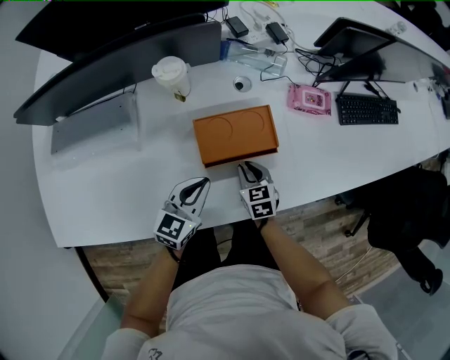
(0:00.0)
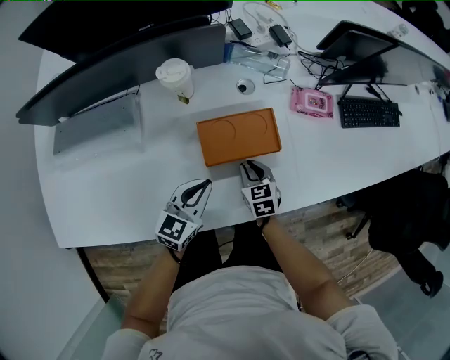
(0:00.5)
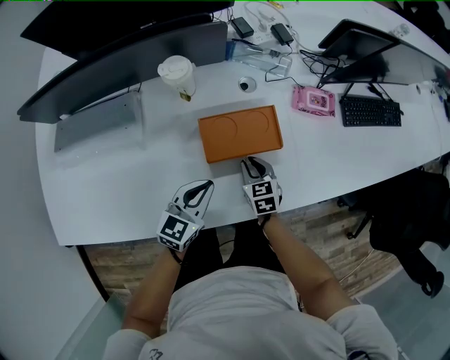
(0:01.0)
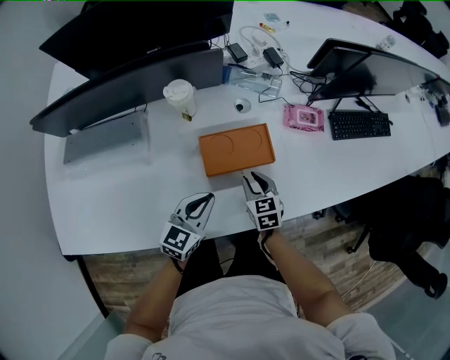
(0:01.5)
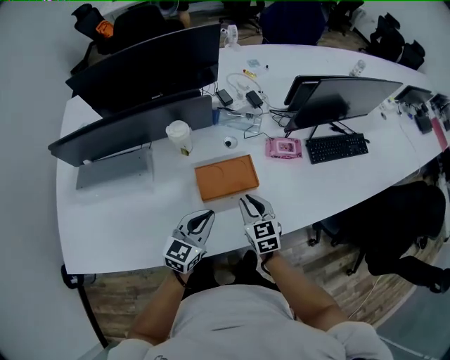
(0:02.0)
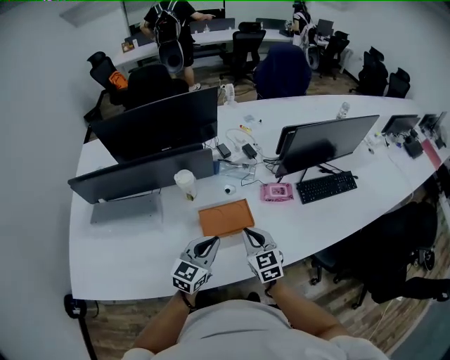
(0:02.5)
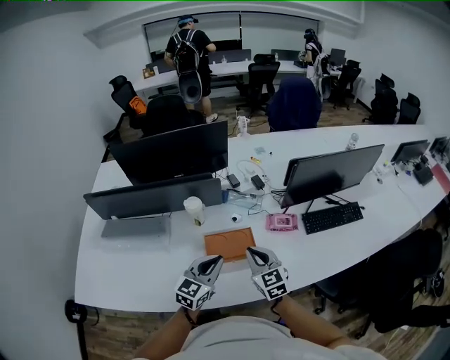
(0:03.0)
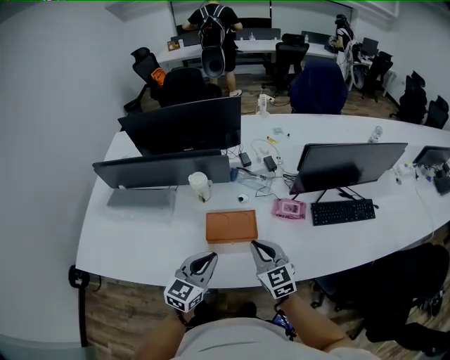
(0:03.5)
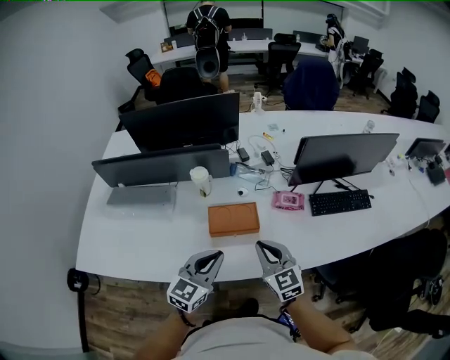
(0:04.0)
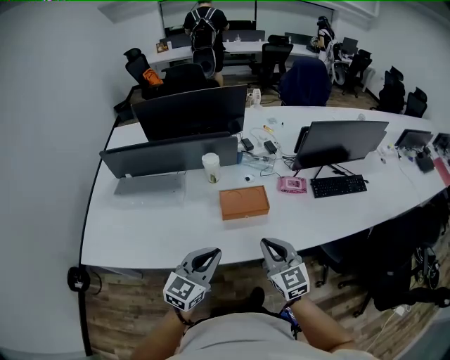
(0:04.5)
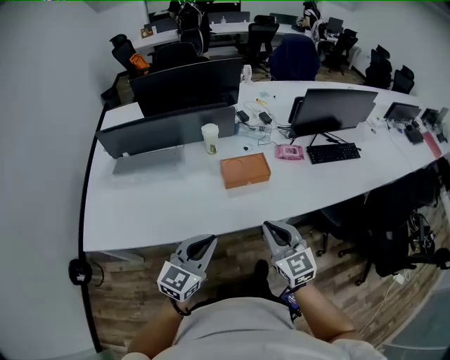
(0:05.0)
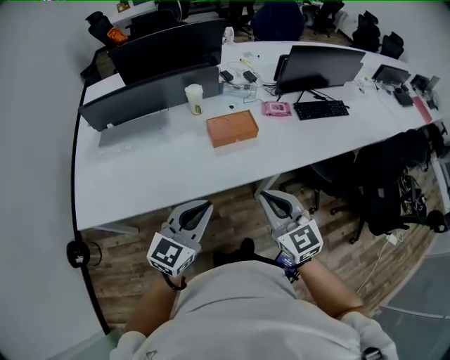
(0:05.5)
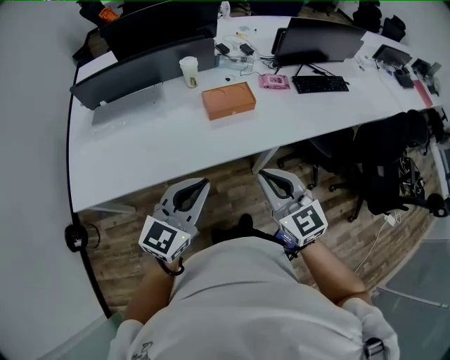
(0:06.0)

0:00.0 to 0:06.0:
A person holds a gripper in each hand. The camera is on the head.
0:00.0 to 0:02.0: The left gripper moves upward, some 10 cm; the right gripper shifts about 20 cm upward.
0:02.0 to 0:04.0: Both grippers move upward, backward and to the right, approximately 20 cm. The right gripper rotates roughly 20 degrees.
0:04.0 to 0:06.0: The left gripper is displaced backward and to the left by about 30 cm. The right gripper goes some 30 cm backward.

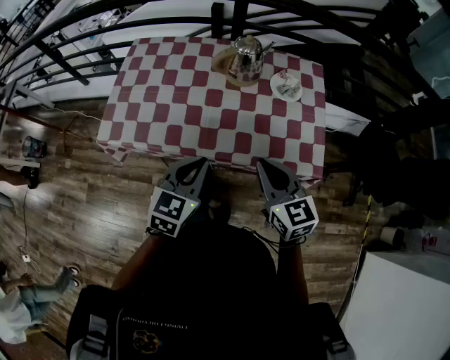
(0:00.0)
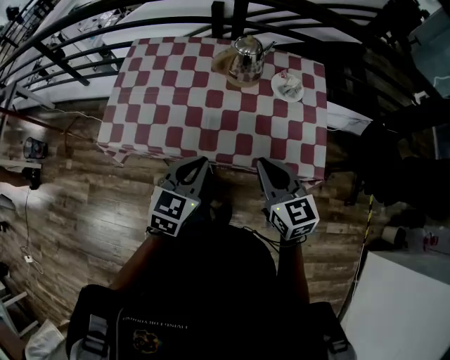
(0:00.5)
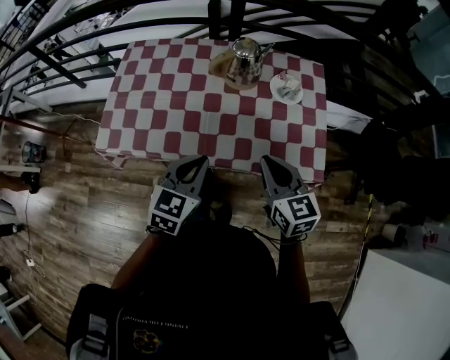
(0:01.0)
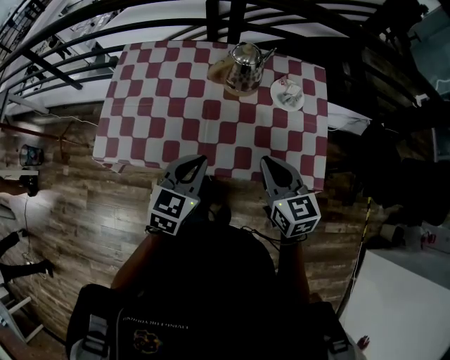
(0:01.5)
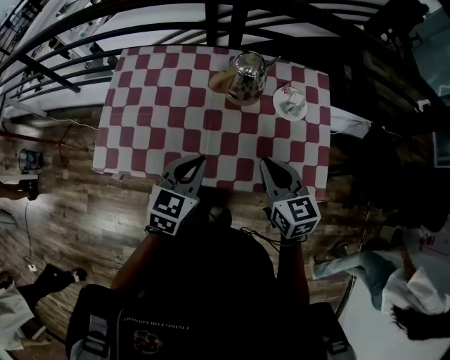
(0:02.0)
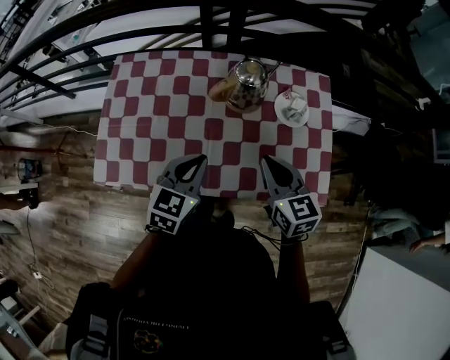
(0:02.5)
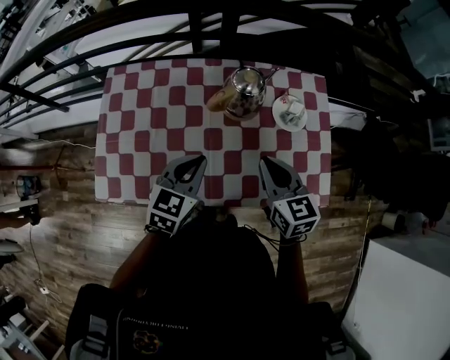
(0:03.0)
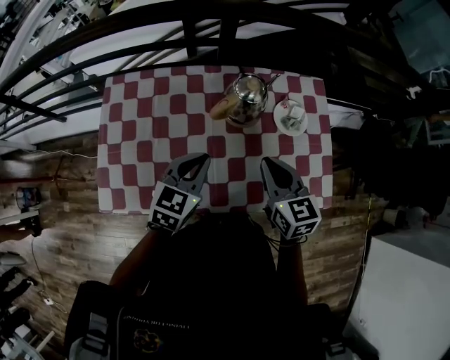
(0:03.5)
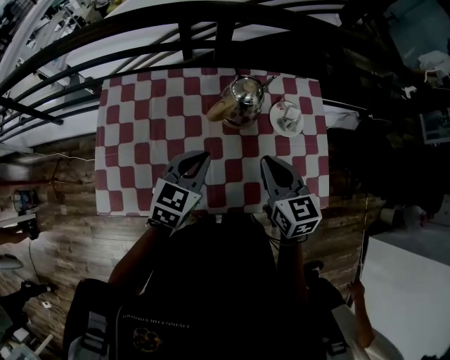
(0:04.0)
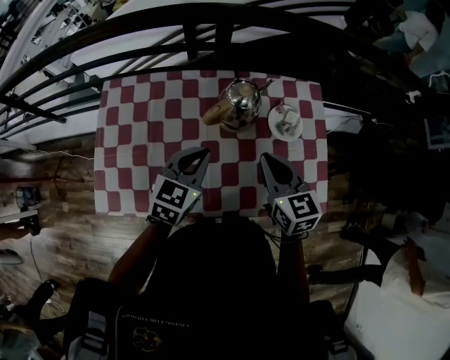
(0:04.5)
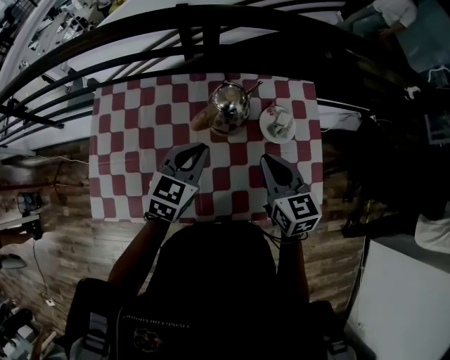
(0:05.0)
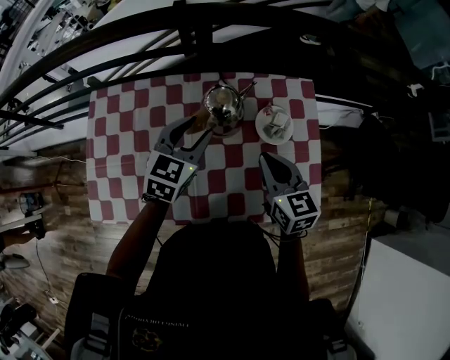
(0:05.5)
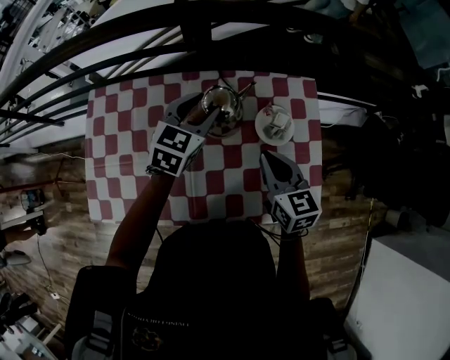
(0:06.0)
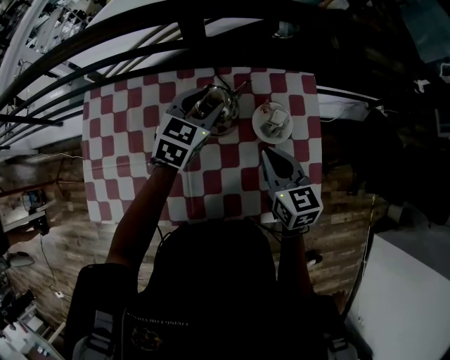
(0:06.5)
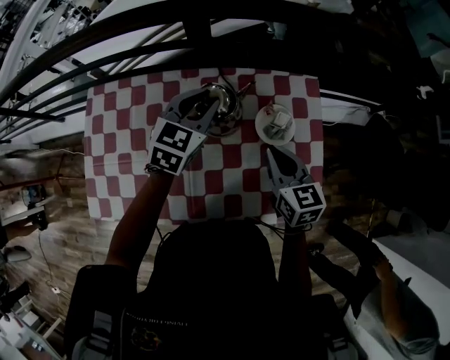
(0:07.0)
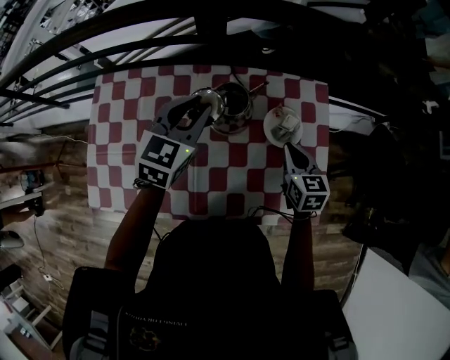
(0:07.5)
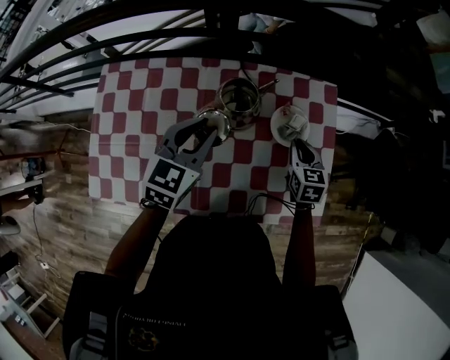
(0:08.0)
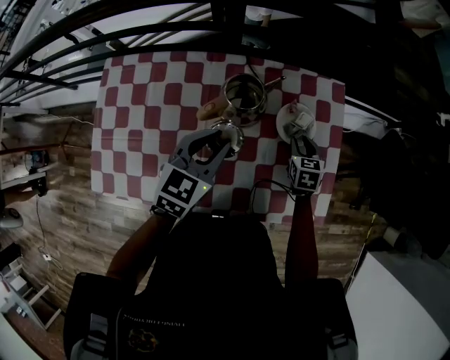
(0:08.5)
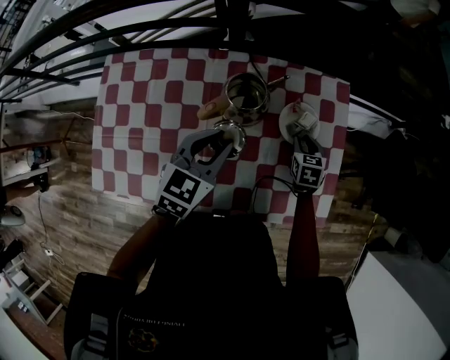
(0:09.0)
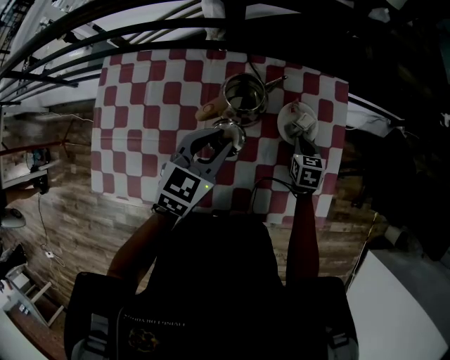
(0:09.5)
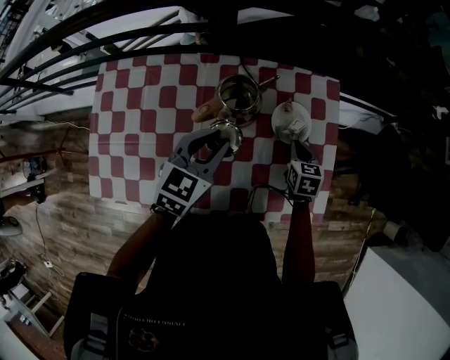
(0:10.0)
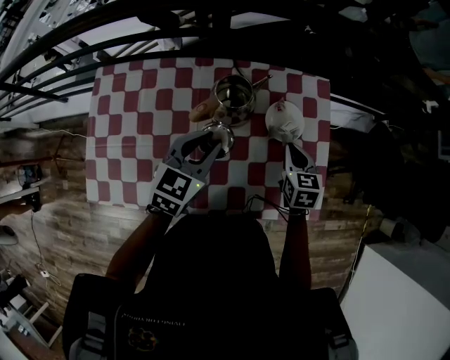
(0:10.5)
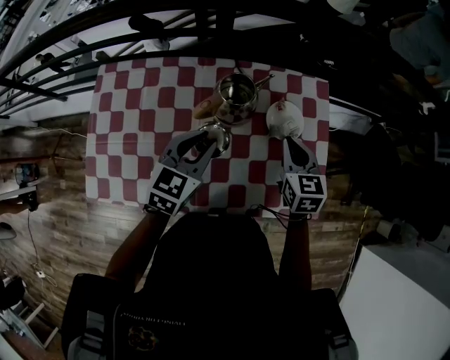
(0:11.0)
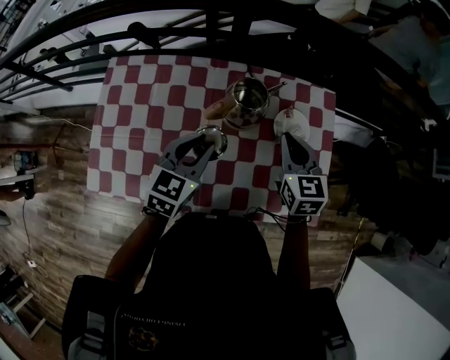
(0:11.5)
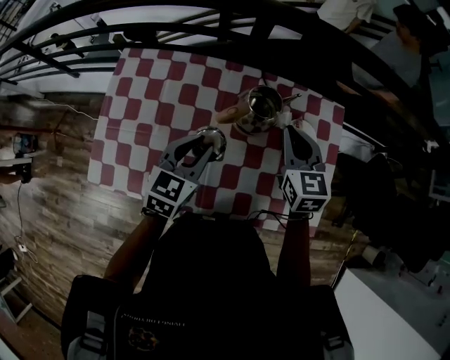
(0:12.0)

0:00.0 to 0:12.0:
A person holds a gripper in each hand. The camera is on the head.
0:00.0 to 0:02.0: Both grippers travel together forward, approximately 10 cm.
0:02.0 to 0:04.0: The two grippers go about 10 cm forward.
0:04.0 to 0:06.0: The left gripper moves forward and to the right, about 20 cm, and opens its fingers. Meanwhile the right gripper shifts approximately 10 cm forward and to the right.
0:06.0 to 0:08.0: The right gripper goes approximately 15 cm downward, to the right and forward. Meanwhile the left gripper moves backward, approximately 10 cm.
0:08.0 to 0:10.0: The right gripper opens, then closes again.
0:10.0 to 0:12.0: The right gripper heads upward and to the left, covering about 25 cm, and swivels some 30 degrees. Meanwhile the left gripper heads to the left, covering roughly 10 cm.

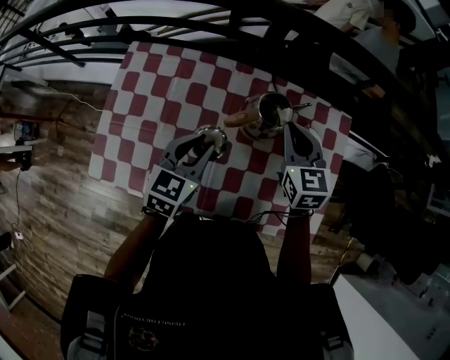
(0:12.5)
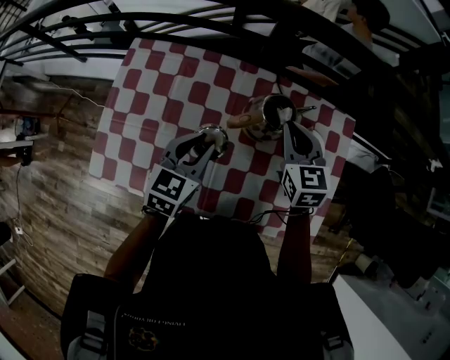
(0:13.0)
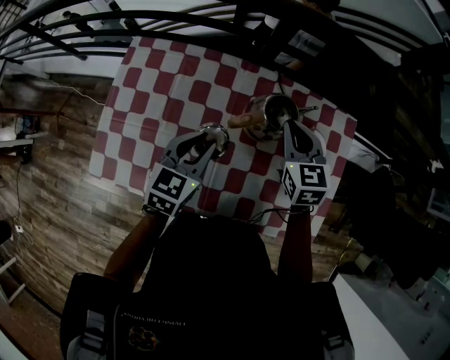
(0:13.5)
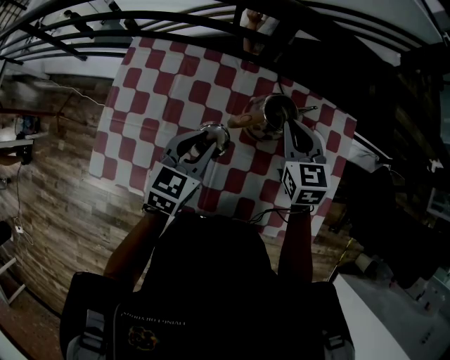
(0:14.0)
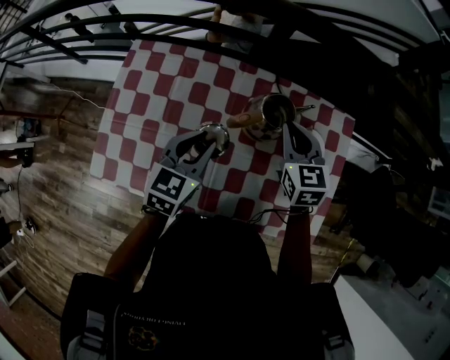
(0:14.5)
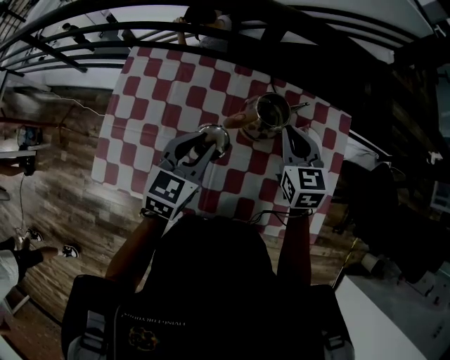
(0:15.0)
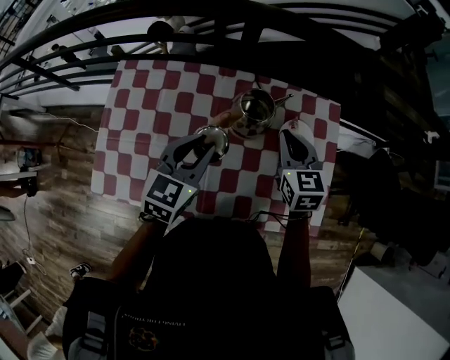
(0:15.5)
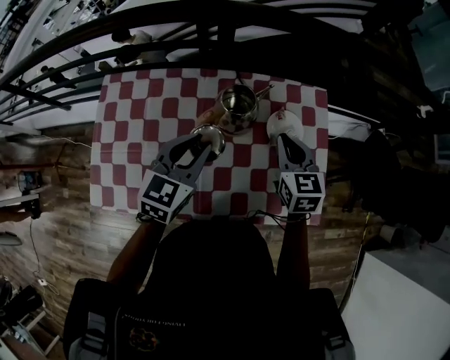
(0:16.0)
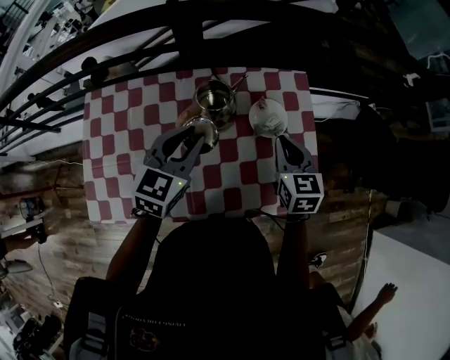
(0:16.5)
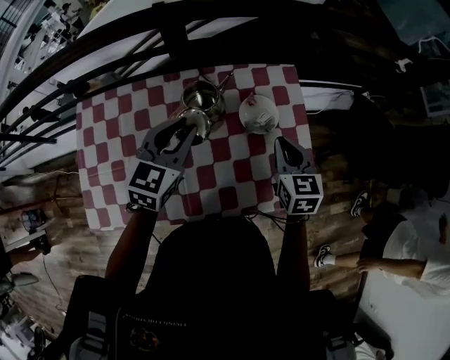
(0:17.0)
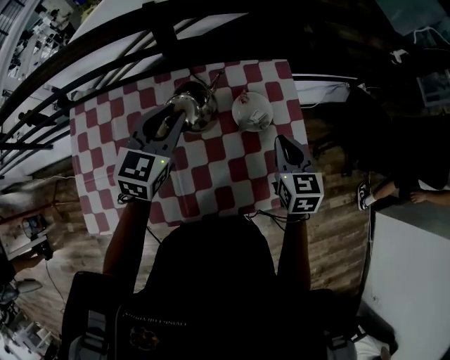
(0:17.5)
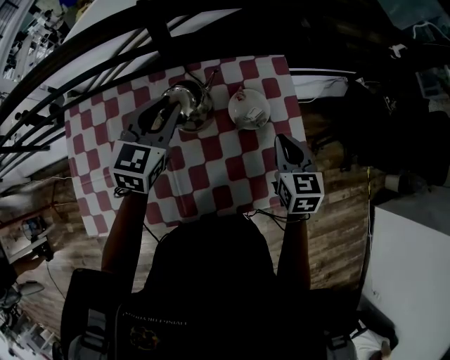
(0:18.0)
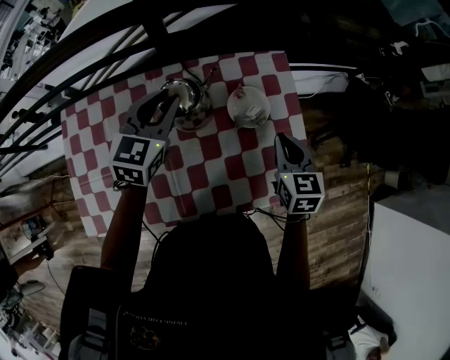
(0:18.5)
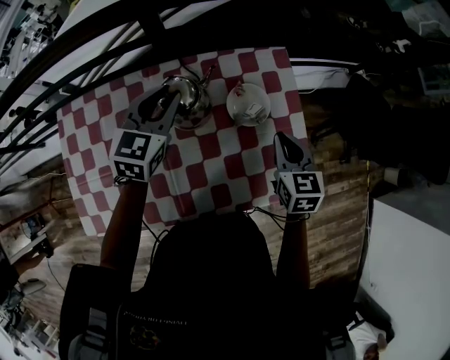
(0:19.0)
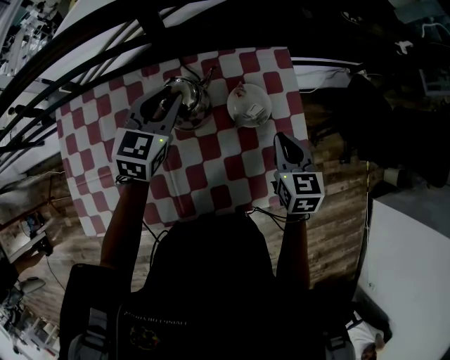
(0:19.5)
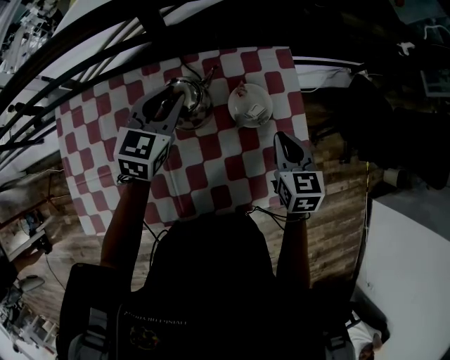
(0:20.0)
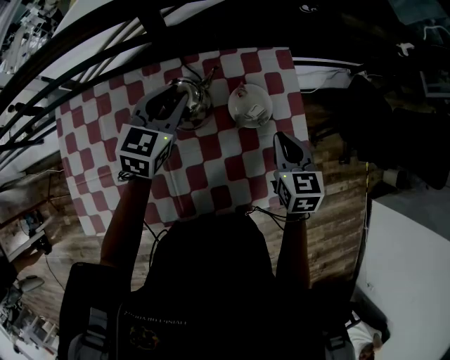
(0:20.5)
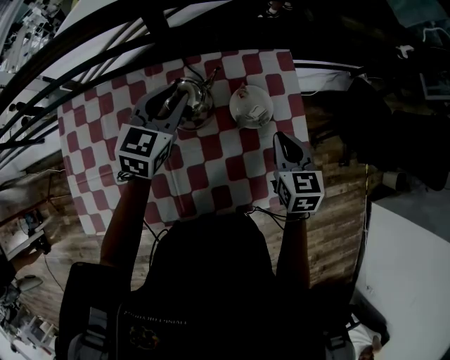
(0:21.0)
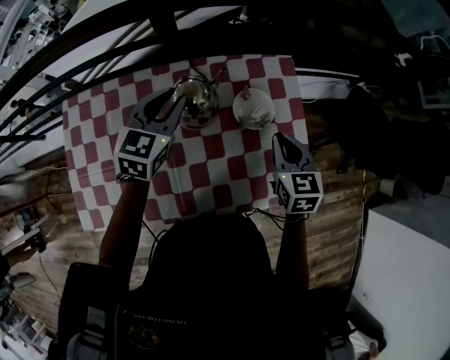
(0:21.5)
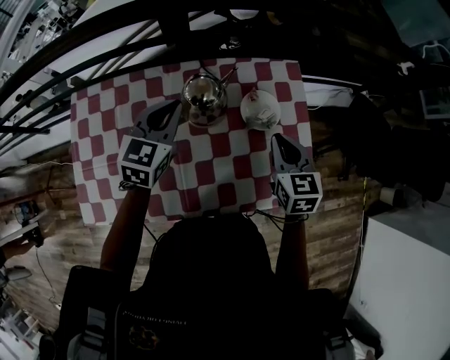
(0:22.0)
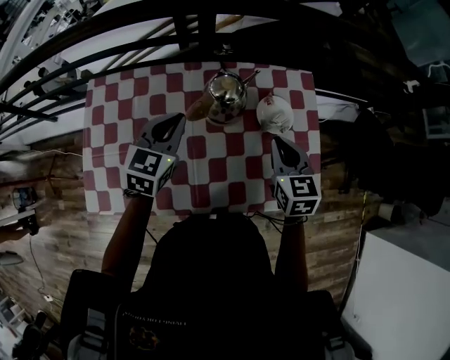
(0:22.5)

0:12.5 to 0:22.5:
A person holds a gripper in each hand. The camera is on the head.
0:12.5 to 0:14.5: The grippers stay close to where they were, moving slightly.
0:14.5 to 0:16.5: The right gripper shifts about 20 cm to the right and backward, and changes its angle by some 20 degrees; the left gripper travels to the right and upward by roughly 10 cm.
0:16.5 to 0:18.5: The right gripper heads to the right, covering some 5 cm; the left gripper is displaced forward by some 10 cm.
0:18.5 to 0:20.5: The grippers make only small movements.
0:20.5 to 0:22.5: The left gripper shifts some 15 cm backward and to the left, and closes its fingers, while the right gripper is displaced to the left by roughly 10 cm.
